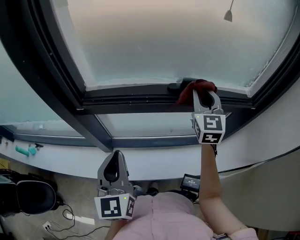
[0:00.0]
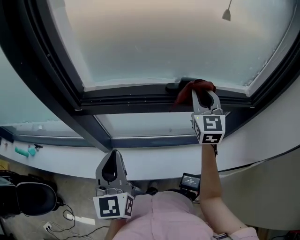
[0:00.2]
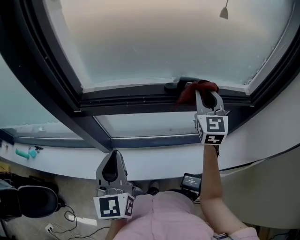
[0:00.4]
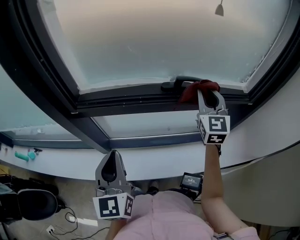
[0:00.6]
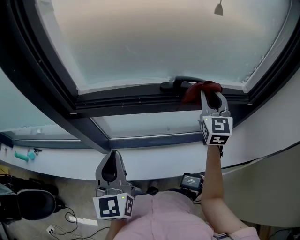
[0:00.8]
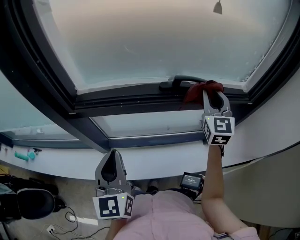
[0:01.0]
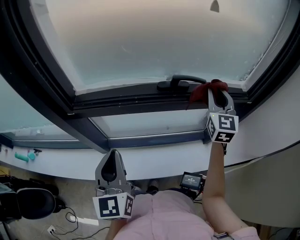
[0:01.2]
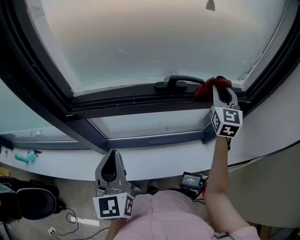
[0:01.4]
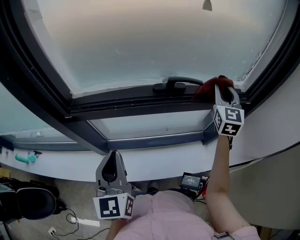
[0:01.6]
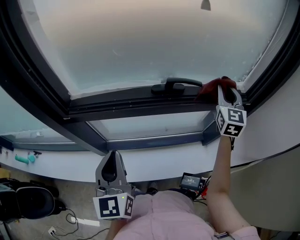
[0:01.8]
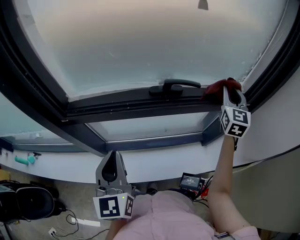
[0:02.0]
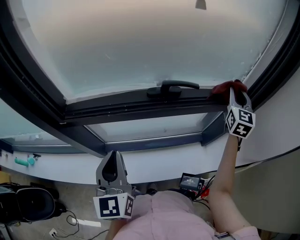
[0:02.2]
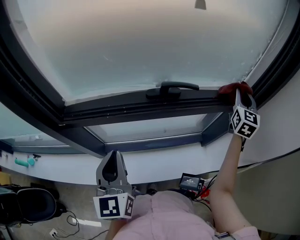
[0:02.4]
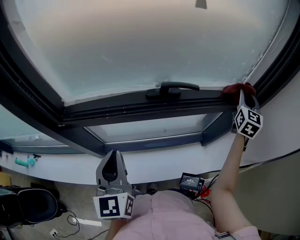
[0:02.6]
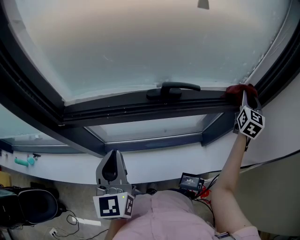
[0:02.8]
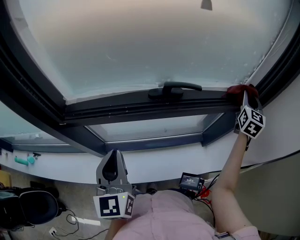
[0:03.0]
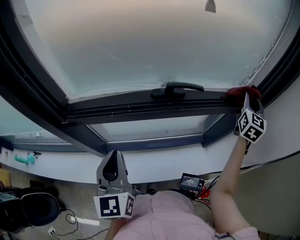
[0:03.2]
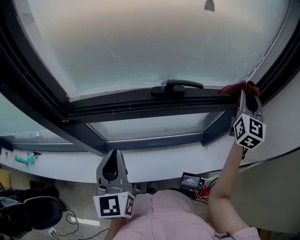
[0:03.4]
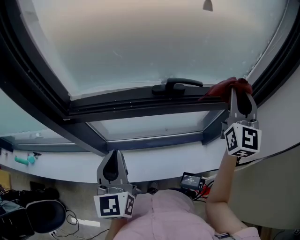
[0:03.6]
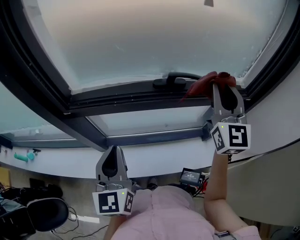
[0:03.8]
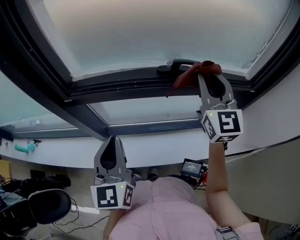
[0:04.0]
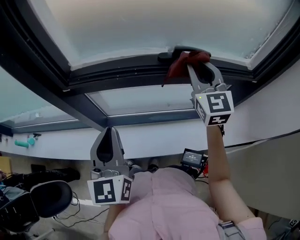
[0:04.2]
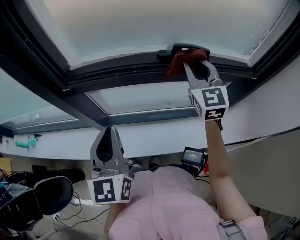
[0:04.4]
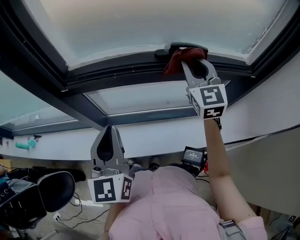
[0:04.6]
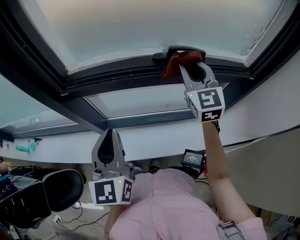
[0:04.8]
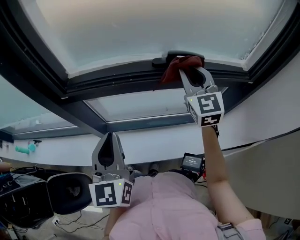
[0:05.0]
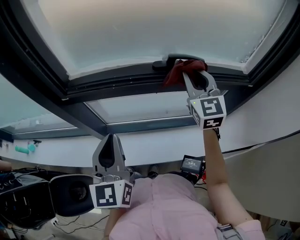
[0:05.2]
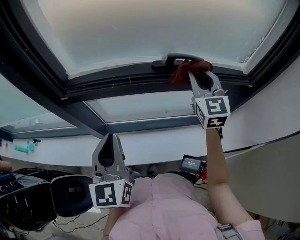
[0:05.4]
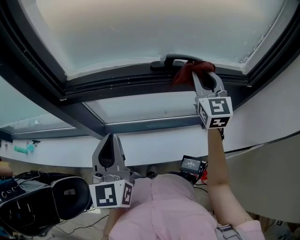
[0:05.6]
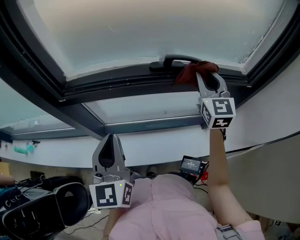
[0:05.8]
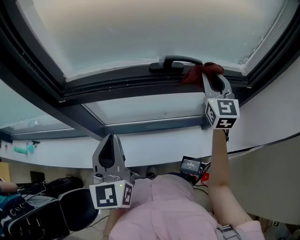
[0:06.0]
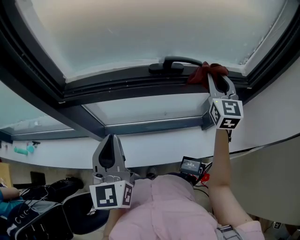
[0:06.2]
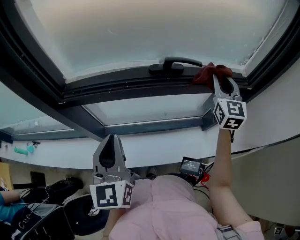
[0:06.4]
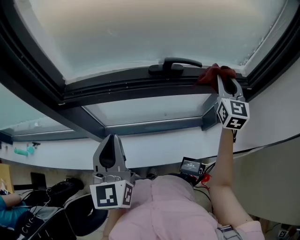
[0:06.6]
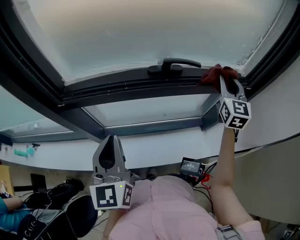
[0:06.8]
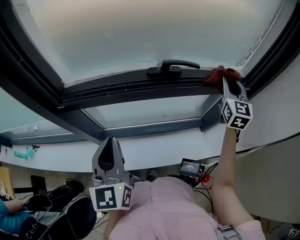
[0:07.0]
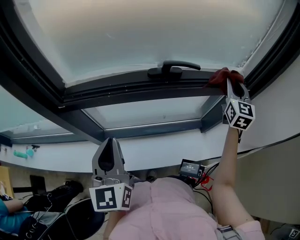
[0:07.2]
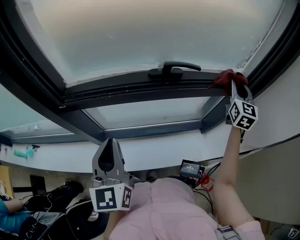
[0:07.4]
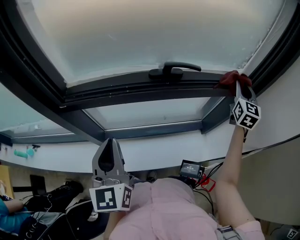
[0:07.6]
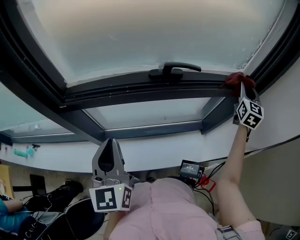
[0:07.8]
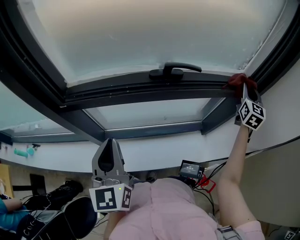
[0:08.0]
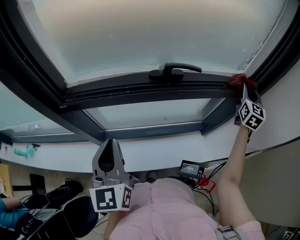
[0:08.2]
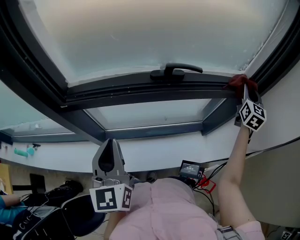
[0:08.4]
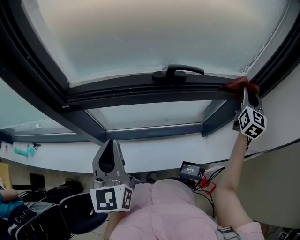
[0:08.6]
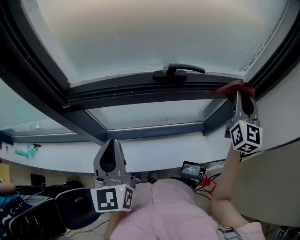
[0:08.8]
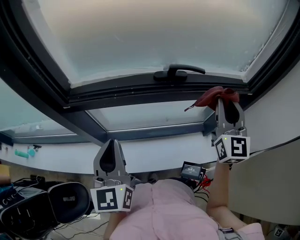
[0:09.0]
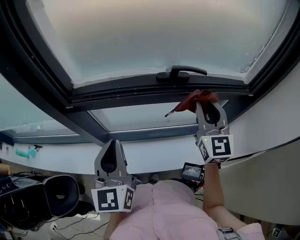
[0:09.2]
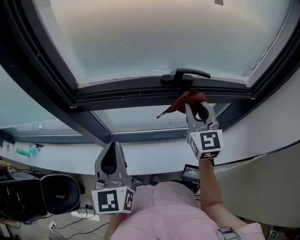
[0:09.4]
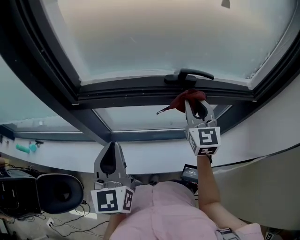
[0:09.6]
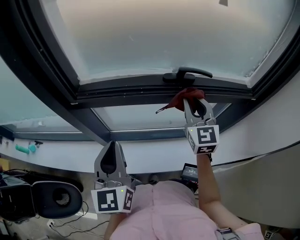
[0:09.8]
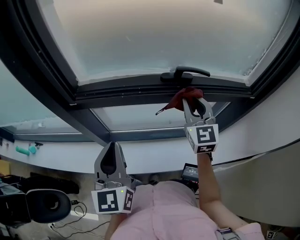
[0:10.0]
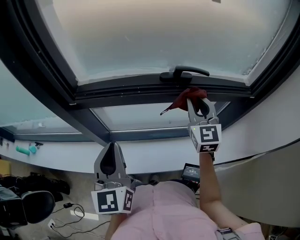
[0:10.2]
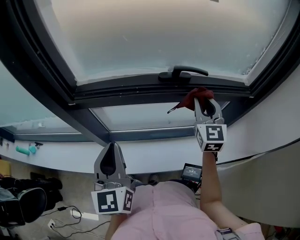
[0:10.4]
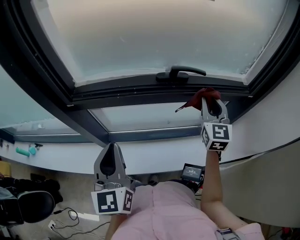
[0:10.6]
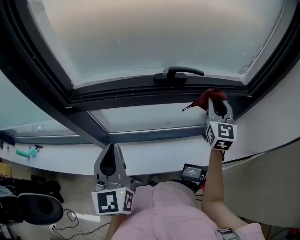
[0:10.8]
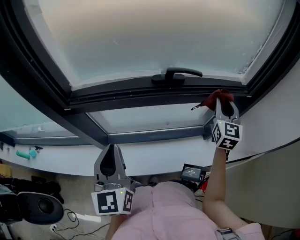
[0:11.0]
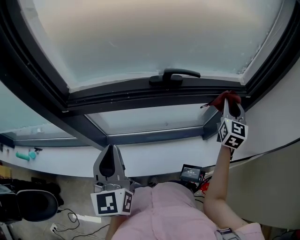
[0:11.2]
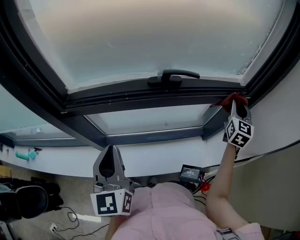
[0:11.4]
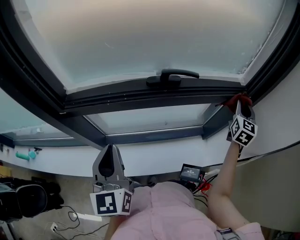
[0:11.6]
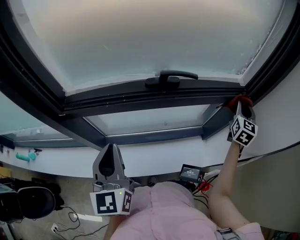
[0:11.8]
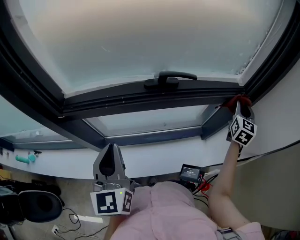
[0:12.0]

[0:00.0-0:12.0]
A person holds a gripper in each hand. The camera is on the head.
0:00.0 to 0:01.6: The right gripper heads to the right, covering roughly 15 cm.
0:01.6 to 0:03.0: The right gripper is displaced to the right by roughly 15 cm.
0:03.0 to 0:04.4: The right gripper goes some 30 cm to the left, and turns by roughly 40 degrees; the left gripper moves backward, approximately 5 cm.
0:04.4 to 0:06.0: The right gripper moves to the right, about 10 cm.
0:06.0 to 0:07.6: The right gripper heads to the right, covering about 20 cm, and changes its angle by approximately 20 degrees.
0:07.6 to 0:09.0: The right gripper goes some 20 cm to the left and backward.
0:09.0 to 0:10.4: The right gripper is displaced downward, forward and to the left by approximately 10 cm.
0:10.4 to 0:12.0: The right gripper heads to the right, covering about 25 cm, and turns by roughly 30 degrees. The left gripper shifts by some 5 cm.

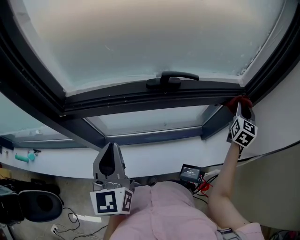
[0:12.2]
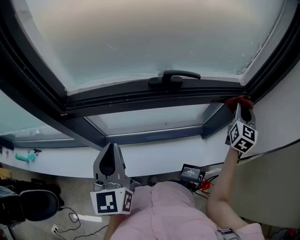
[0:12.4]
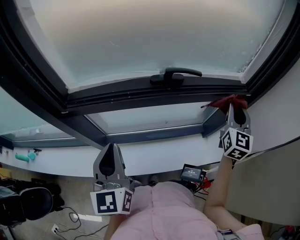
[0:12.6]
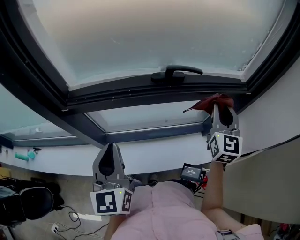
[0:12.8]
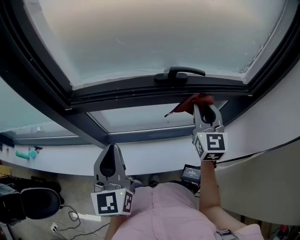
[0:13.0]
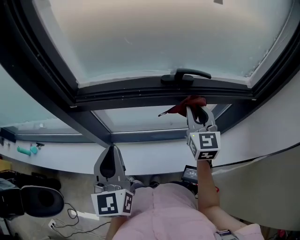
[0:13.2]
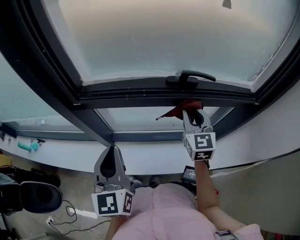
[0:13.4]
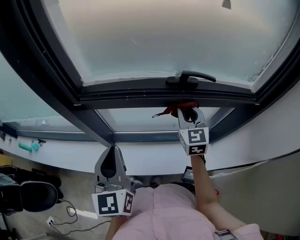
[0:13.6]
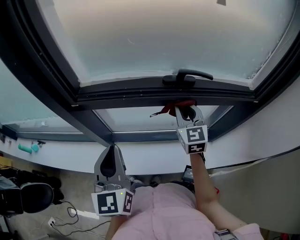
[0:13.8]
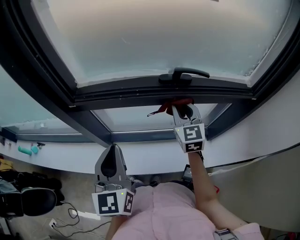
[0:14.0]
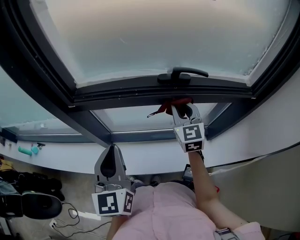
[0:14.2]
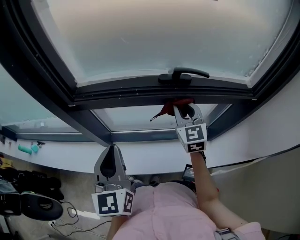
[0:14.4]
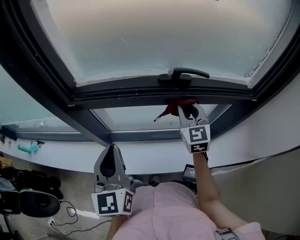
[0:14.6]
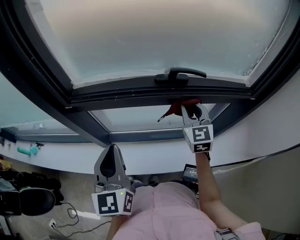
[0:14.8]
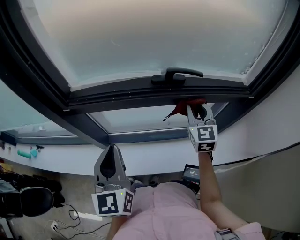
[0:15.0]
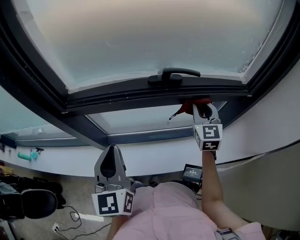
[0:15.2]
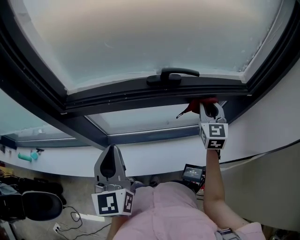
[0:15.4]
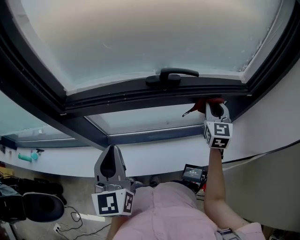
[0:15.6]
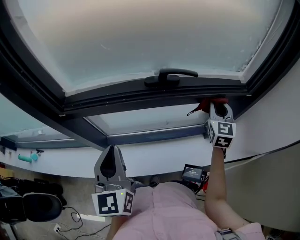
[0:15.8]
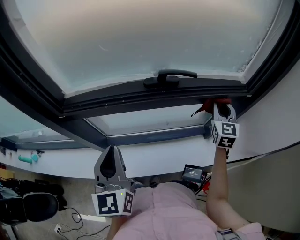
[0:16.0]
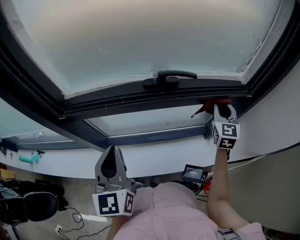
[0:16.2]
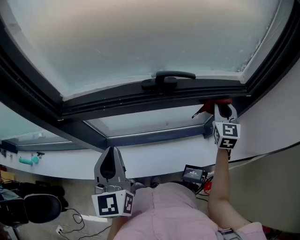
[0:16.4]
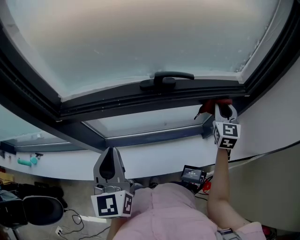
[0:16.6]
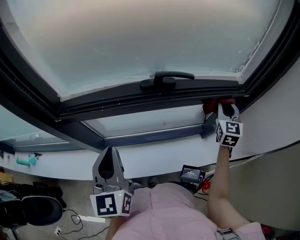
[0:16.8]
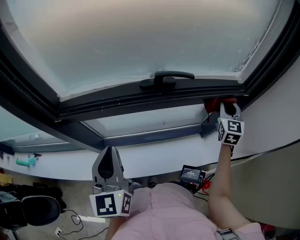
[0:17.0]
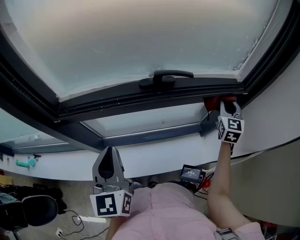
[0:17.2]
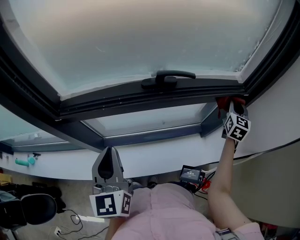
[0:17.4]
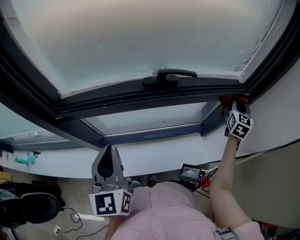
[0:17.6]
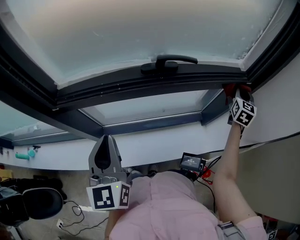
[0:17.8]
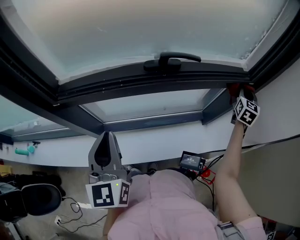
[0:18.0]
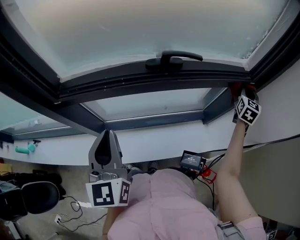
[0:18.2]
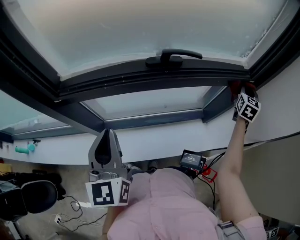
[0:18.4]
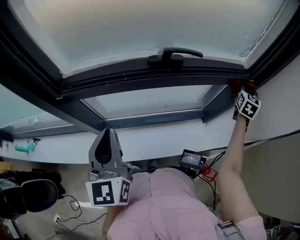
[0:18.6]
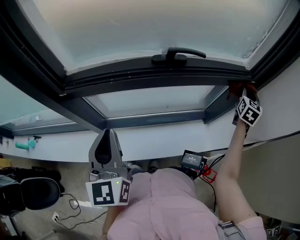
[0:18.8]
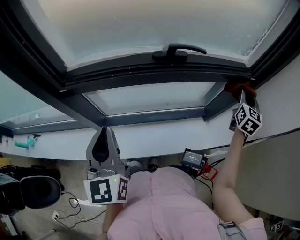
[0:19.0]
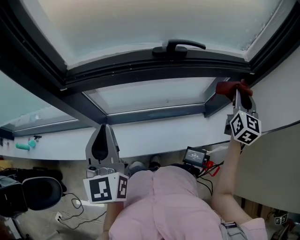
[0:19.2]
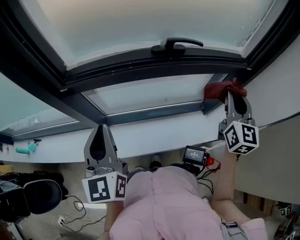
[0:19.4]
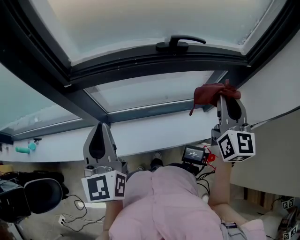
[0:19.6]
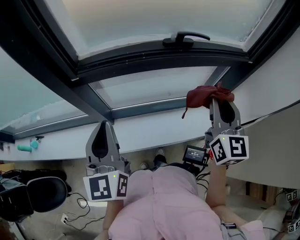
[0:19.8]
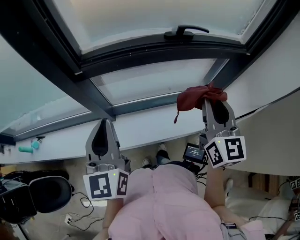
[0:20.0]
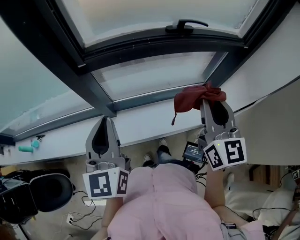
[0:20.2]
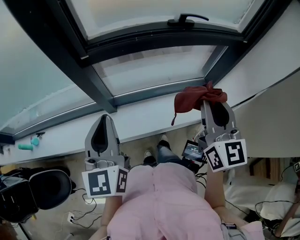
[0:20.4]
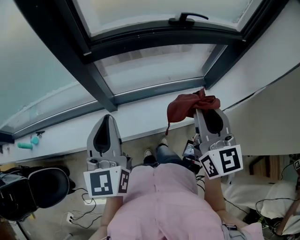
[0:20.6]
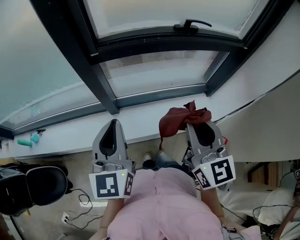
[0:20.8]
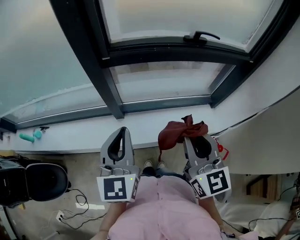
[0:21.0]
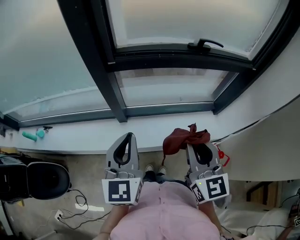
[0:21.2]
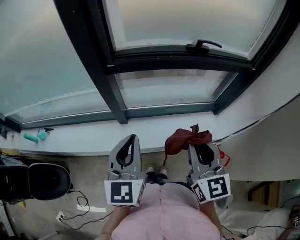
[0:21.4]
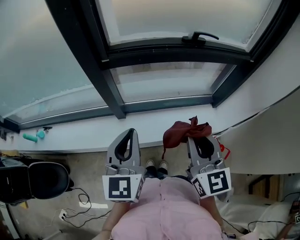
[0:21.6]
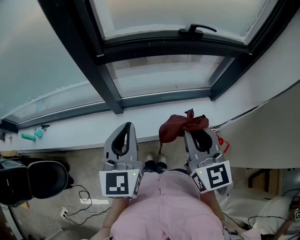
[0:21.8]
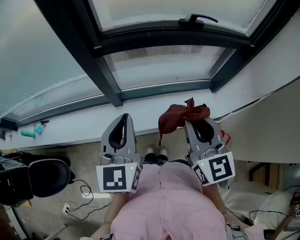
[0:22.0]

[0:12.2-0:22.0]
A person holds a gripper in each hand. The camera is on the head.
0:12.2 to 0:13.6: The right gripper goes about 35 cm to the left, and changes its angle by about 40 degrees. Meanwhile the left gripper ends up approximately 5 cm from where it was.
0:13.6 to 0:15.0: The right gripper shifts approximately 10 cm to the right.
0:15.0 to 0:16.4: The right gripper travels to the right by approximately 15 cm.
0:16.4 to 0:17.8: The right gripper shifts approximately 15 cm to the right.
0:17.8 to 0:19.2: The right gripper travels backward and to the left by approximately 15 cm. Meanwhile the left gripper changes place by approximately 5 cm.
0:19.2 to 0:20.6: The left gripper is displaced backward and to the left by some 15 cm. The right gripper travels to the left and backward by some 40 cm, and swivels roughly 20 degrees.

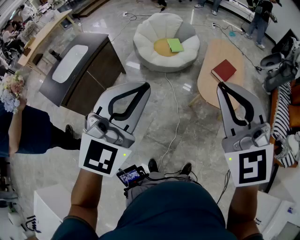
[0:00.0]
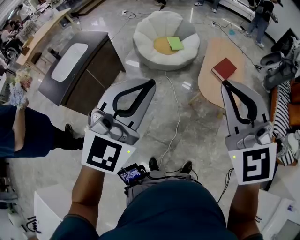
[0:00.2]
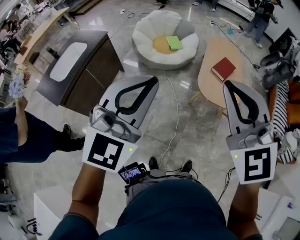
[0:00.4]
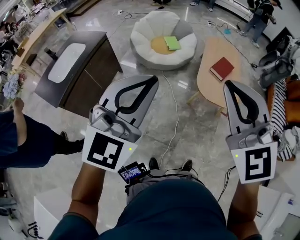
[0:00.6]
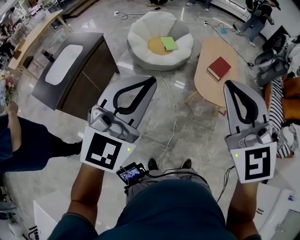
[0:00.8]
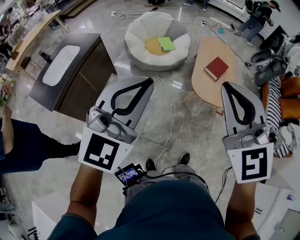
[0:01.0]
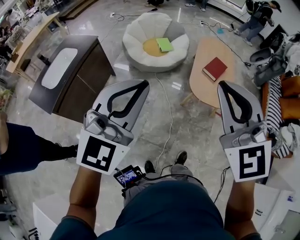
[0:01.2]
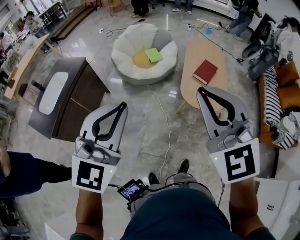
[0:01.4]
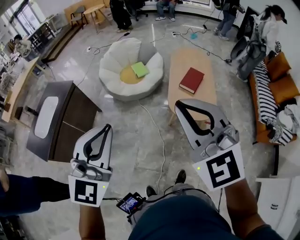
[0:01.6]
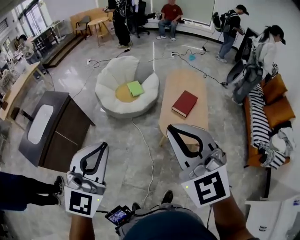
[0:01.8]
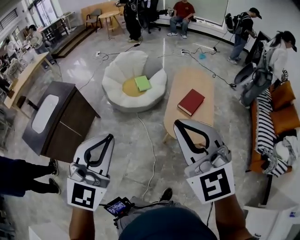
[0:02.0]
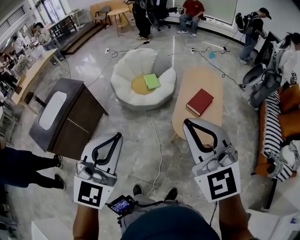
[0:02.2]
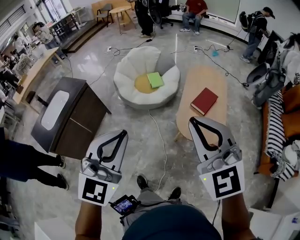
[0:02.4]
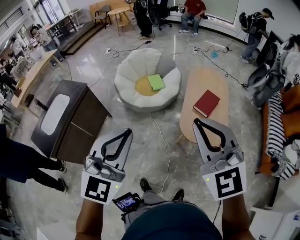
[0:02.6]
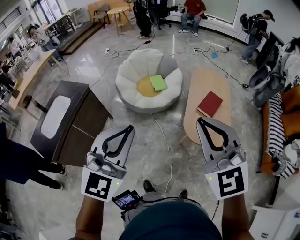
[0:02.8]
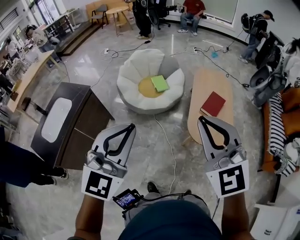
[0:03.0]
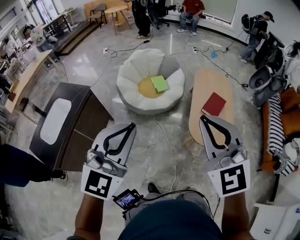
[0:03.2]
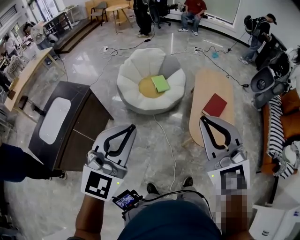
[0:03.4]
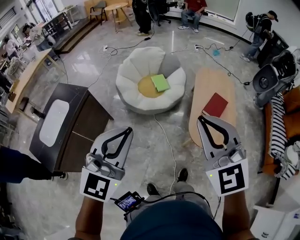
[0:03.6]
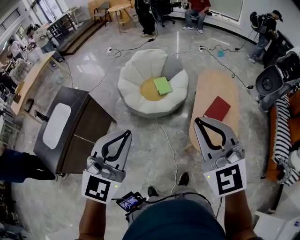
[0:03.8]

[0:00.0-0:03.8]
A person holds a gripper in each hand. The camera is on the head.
0:00.0 to 0:01.2: The grippers make only small movements.
0:01.2 to 0:02.6: Both grippers move forward and to the right, about 20 cm.
0:02.6 to 0:03.8: Both grippers move forward and to the left, approximately 15 cm.
